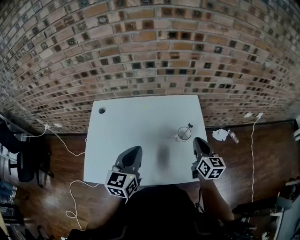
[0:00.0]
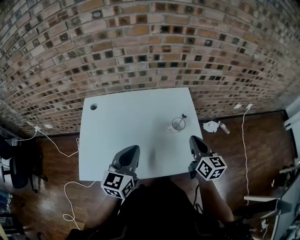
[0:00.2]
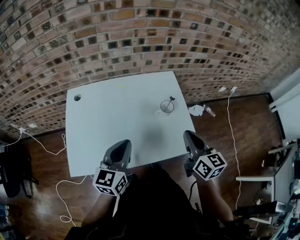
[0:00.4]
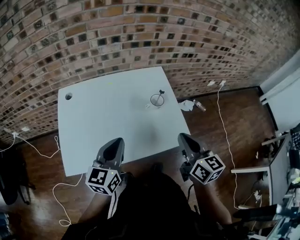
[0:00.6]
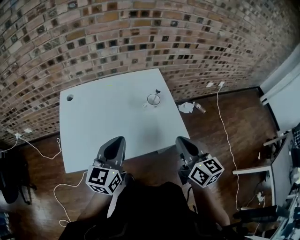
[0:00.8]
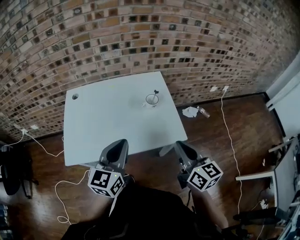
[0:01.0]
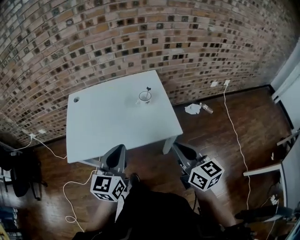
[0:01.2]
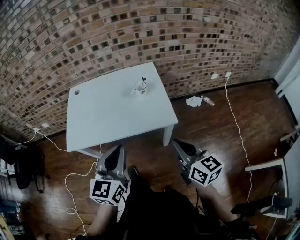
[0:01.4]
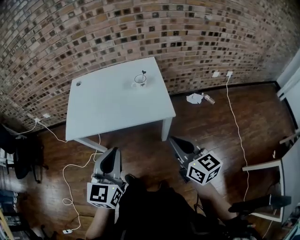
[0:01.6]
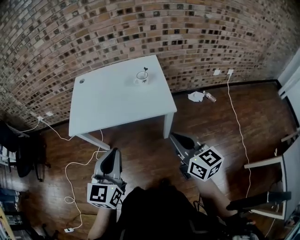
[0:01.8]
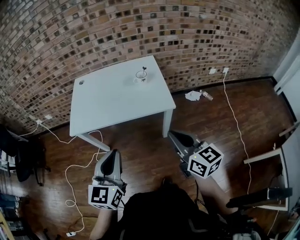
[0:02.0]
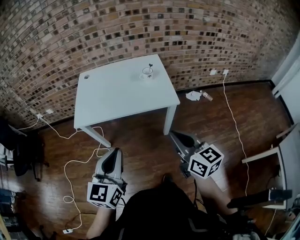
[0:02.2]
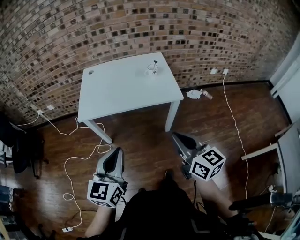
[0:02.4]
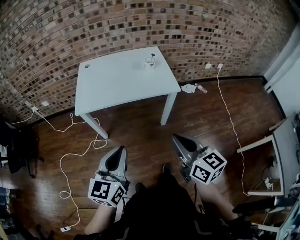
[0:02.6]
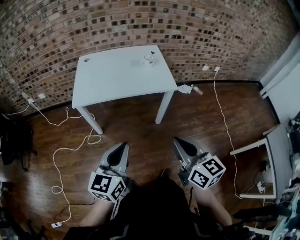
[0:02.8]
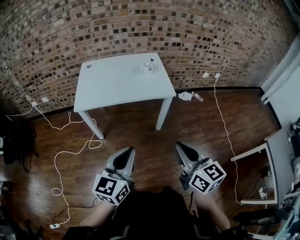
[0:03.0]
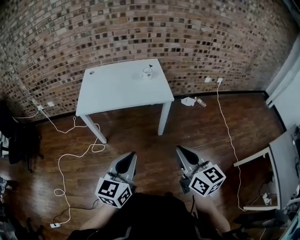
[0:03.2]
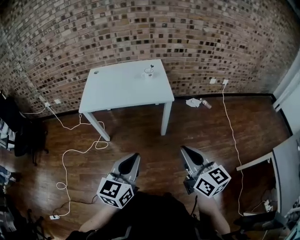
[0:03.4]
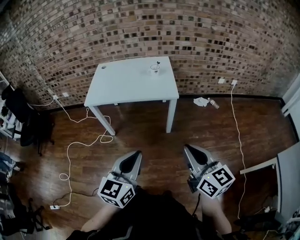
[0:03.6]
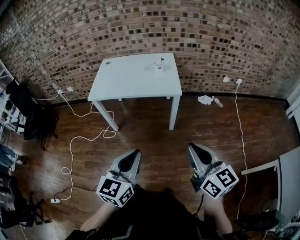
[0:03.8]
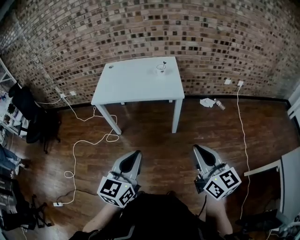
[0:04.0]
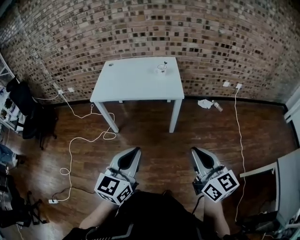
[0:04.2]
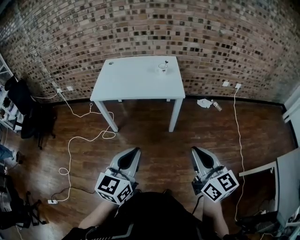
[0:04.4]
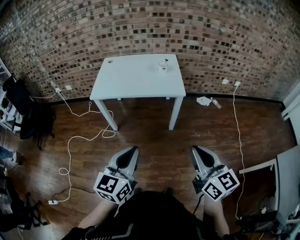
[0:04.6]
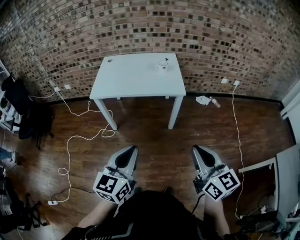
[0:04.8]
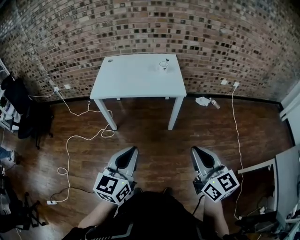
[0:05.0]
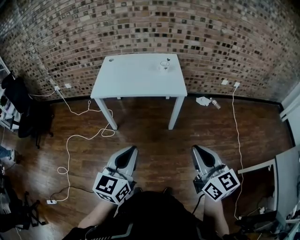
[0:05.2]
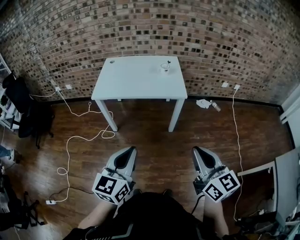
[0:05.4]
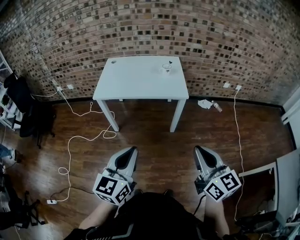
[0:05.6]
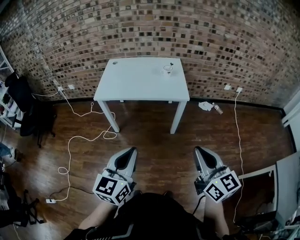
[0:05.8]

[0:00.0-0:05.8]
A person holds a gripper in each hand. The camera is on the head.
0:00.0 to 0:01.4: The right gripper is displaced backward by some 35 cm. The left gripper travels backward and to the right by roughly 30 cm.
0:01.4 to 0:02.8: Both grippers travel together backward and to the left, about 30 cm.
0:02.8 to 0:04.4: The grippers both shift to the right and backward by some 15 cm.
0:04.4 to 0:05.8: The grippers make only small movements.

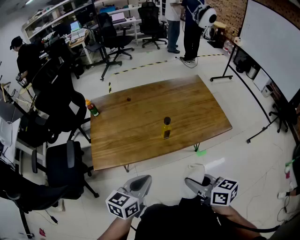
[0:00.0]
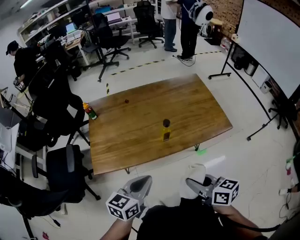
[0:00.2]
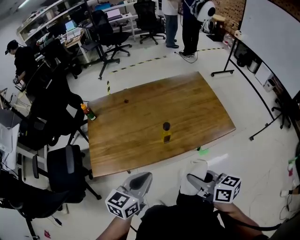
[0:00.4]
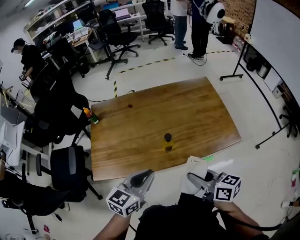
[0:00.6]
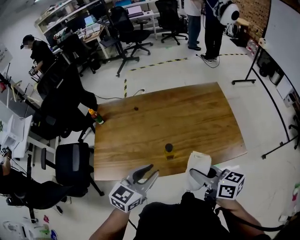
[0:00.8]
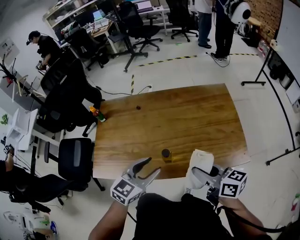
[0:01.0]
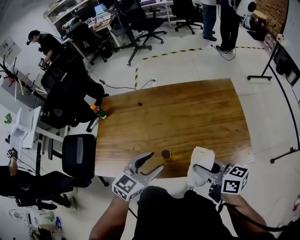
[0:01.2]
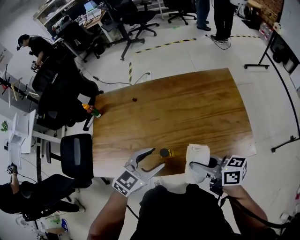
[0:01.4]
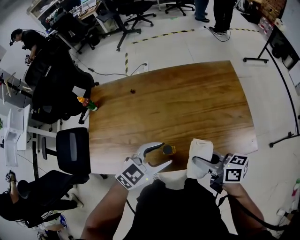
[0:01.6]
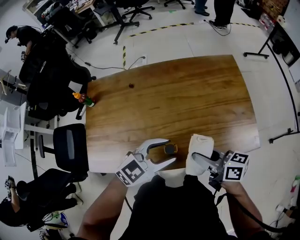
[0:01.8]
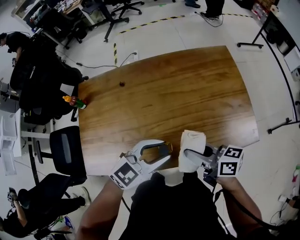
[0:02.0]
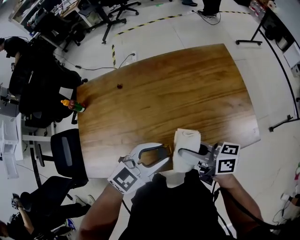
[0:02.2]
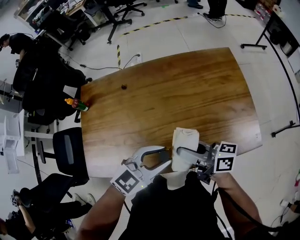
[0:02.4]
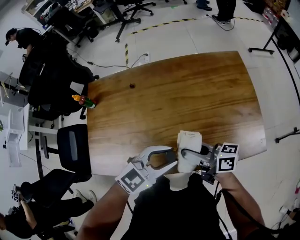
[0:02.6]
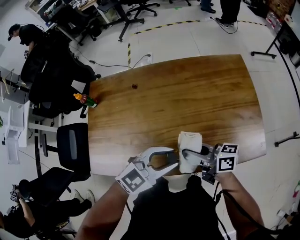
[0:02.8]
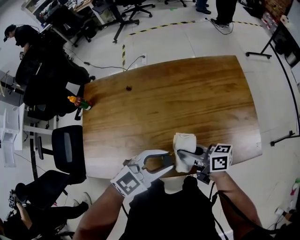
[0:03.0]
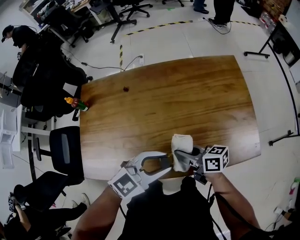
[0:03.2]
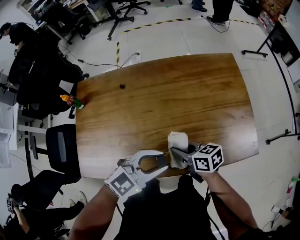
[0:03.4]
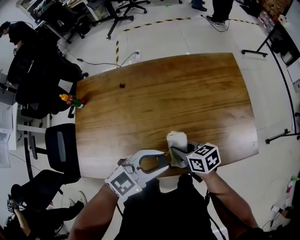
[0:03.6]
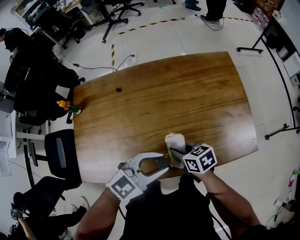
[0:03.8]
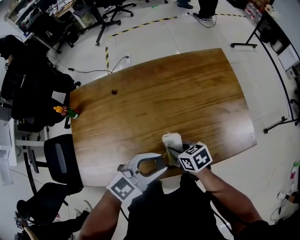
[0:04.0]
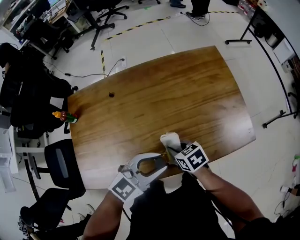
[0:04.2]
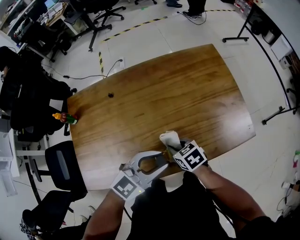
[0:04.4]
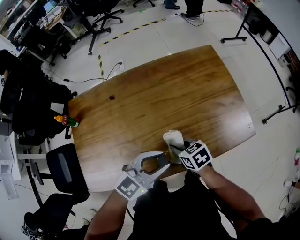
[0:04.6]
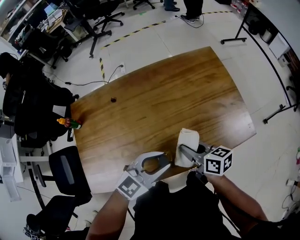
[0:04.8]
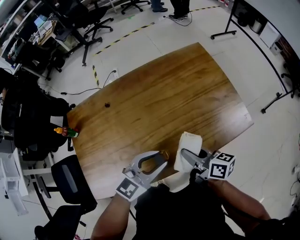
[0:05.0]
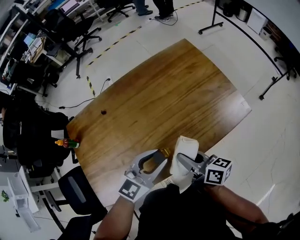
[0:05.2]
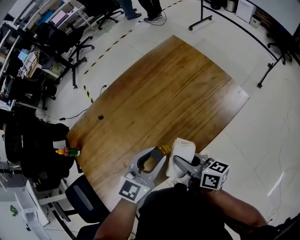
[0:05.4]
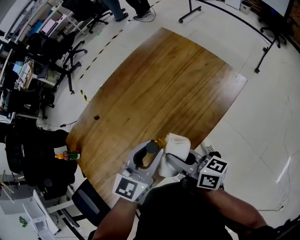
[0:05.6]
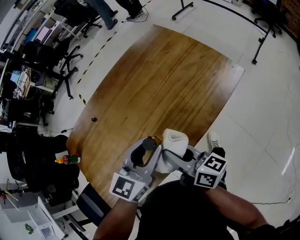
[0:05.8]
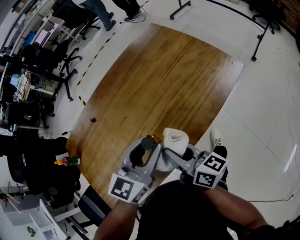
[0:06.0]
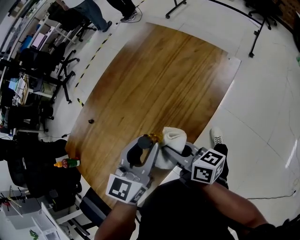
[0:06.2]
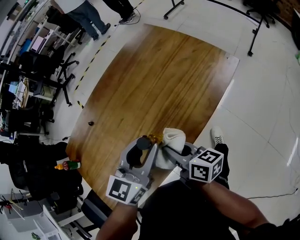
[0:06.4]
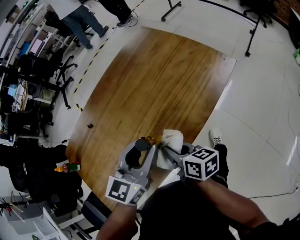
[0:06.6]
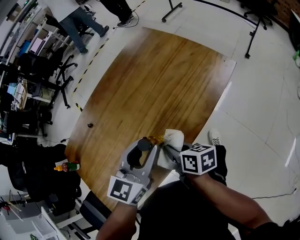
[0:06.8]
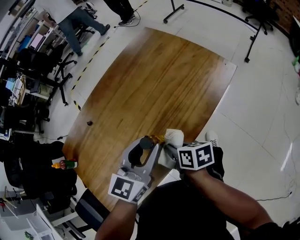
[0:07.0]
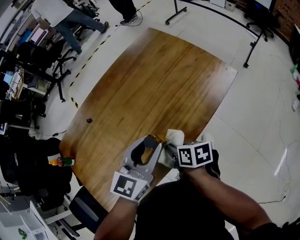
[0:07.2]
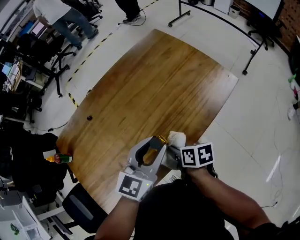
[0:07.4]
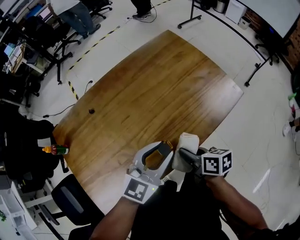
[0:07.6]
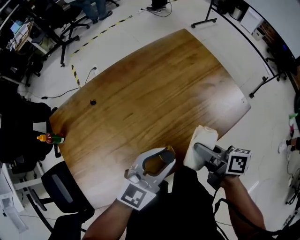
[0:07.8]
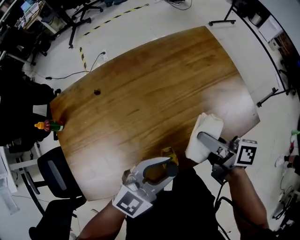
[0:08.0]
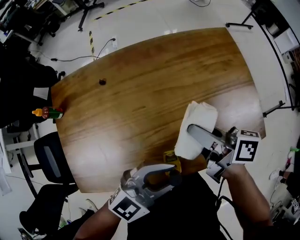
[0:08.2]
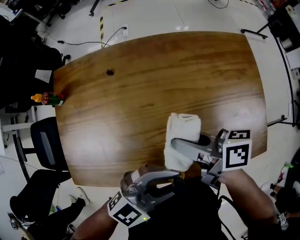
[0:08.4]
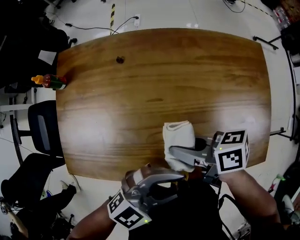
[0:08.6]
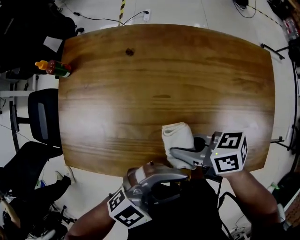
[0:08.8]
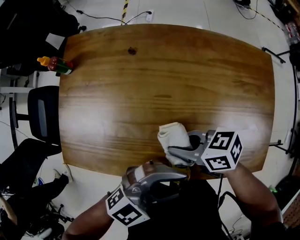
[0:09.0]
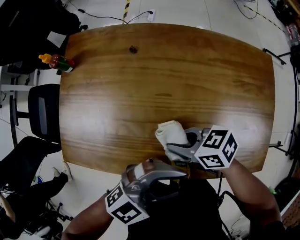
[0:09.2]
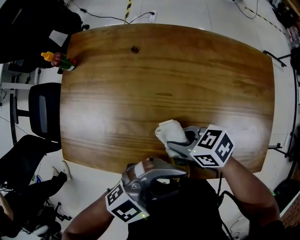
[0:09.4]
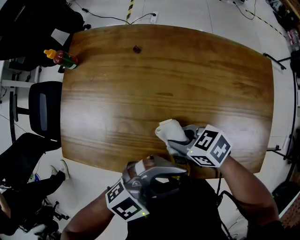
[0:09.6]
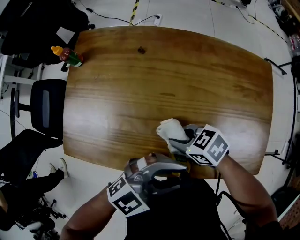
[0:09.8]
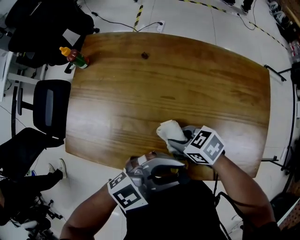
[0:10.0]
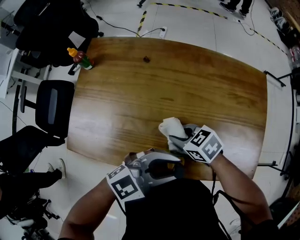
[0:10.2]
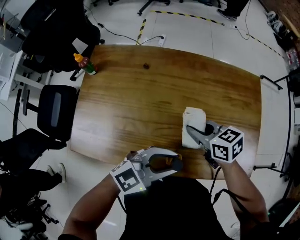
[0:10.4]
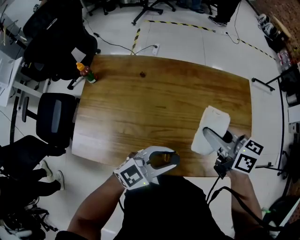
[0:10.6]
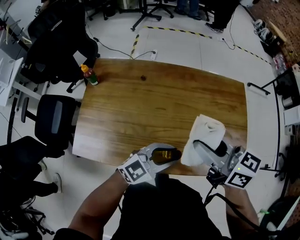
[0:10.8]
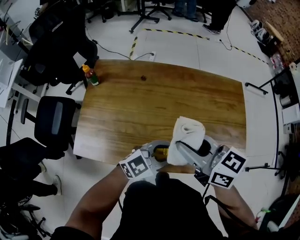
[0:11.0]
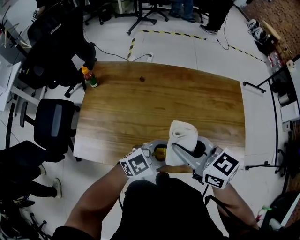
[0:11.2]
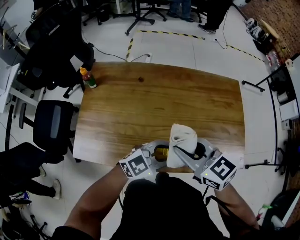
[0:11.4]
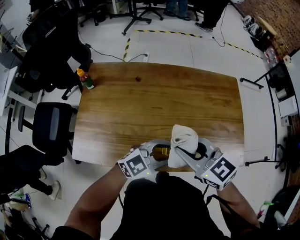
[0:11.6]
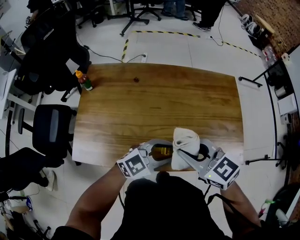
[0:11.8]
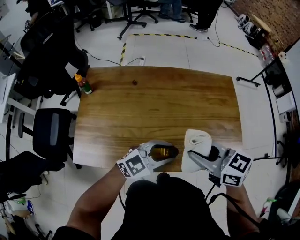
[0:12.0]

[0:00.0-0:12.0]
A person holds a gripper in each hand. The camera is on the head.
0:00.0 to 0:01.6: The right gripper travels forward by some 25 cm, and turns by about 20 degrees. The left gripper is displaced forward and to the right by about 25 cm, swivels approximately 30 degrees, and opens up.
0:01.6 to 0:03.0: The left gripper closes up, while the right gripper moves approximately 10 cm.
0:03.0 to 0:04.4: The right gripper shifts some 10 cm downward, and tilts its fingers about 50 degrees downward.
0:04.4 to 0:06.0: The right gripper travels upward and backward by some 10 cm, and angles its fingers upward, by approximately 50 degrees.
0:06.0 to 0:07.6: The right gripper heads to the right and downward, covering about 10 cm, and tilts its fingers about 40 degrees downward.
0:07.6 to 0:09.0: The right gripper goes upward and returns, about 10 cm each way, and turns by some 80 degrees.
0:09.0 to 0:10.4: The right gripper moves some 10 cm, and rotates approximately 30 degrees.
0:10.4 to 0:12.0: The right gripper shifts roughly 15 cm upward.

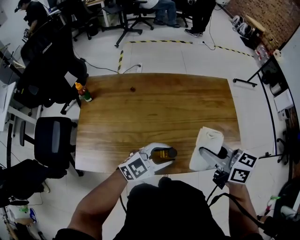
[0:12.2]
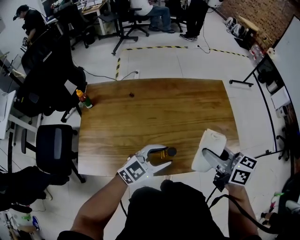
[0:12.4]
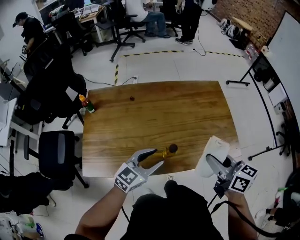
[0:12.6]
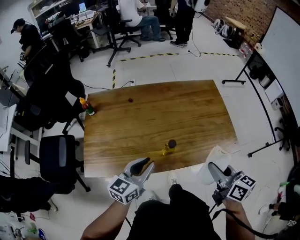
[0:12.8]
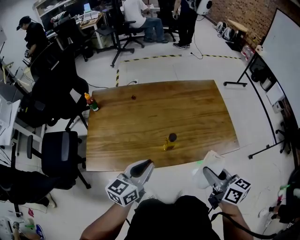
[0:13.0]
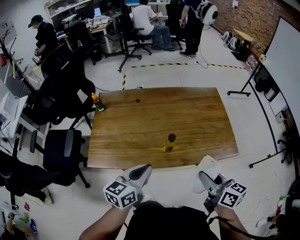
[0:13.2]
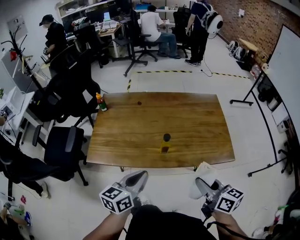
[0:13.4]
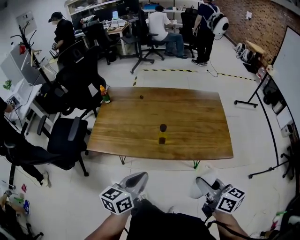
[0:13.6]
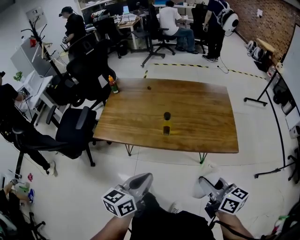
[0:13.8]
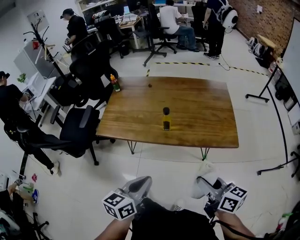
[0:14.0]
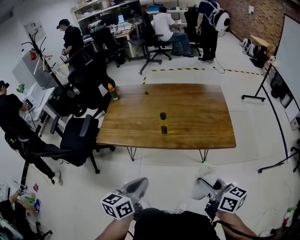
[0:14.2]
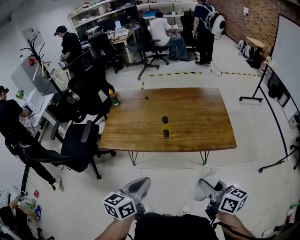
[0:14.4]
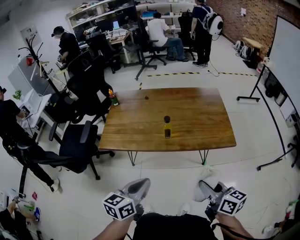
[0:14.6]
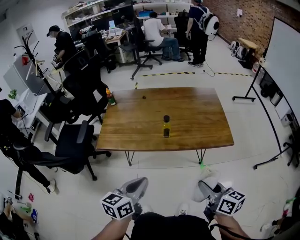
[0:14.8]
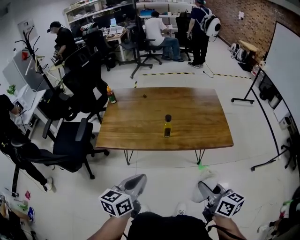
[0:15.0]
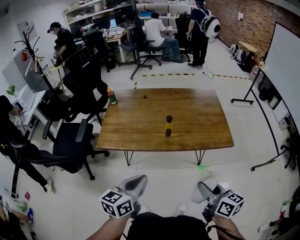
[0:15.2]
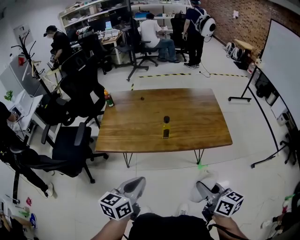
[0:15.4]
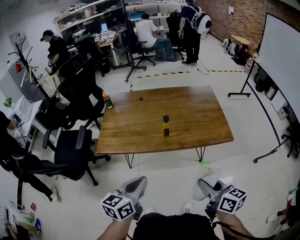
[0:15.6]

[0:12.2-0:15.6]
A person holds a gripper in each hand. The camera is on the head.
0:12.2 to 0:13.8: The two grippers go approximately 25 cm backward. The left gripper changes its angle by roughly 60 degrees, and closes up.
0:13.8 to 0:15.6: The right gripper heads backward, covering roughly 5 cm, while the left gripper is displaced to the left by some 10 cm.

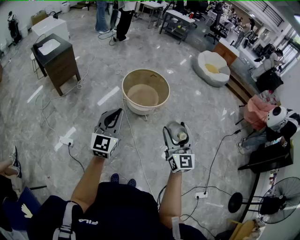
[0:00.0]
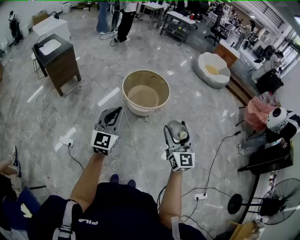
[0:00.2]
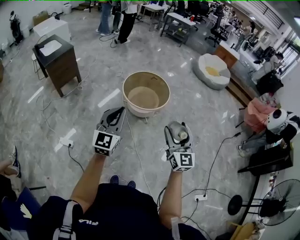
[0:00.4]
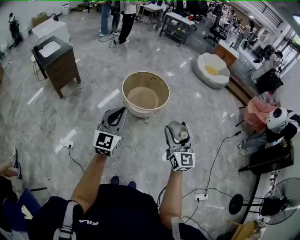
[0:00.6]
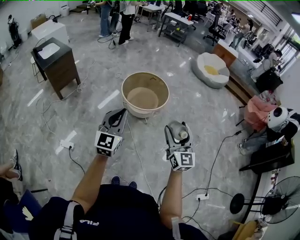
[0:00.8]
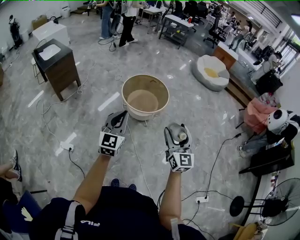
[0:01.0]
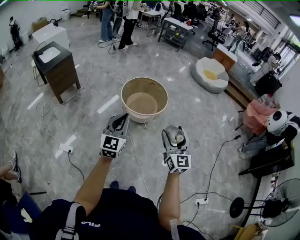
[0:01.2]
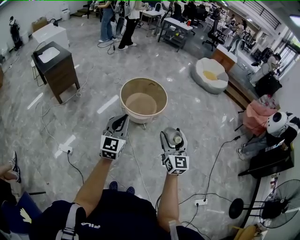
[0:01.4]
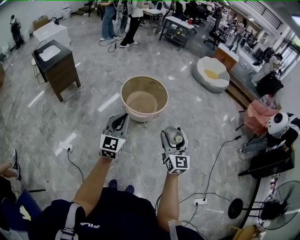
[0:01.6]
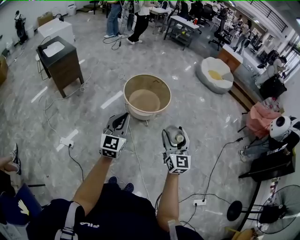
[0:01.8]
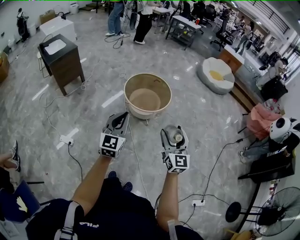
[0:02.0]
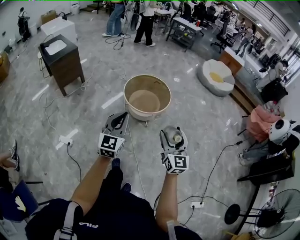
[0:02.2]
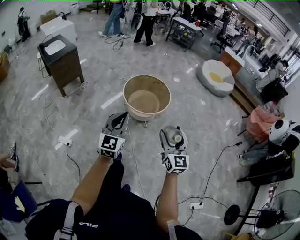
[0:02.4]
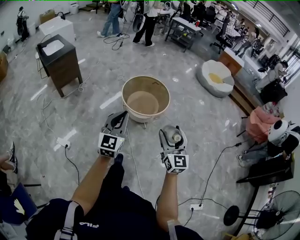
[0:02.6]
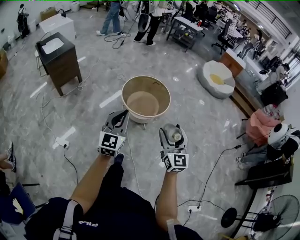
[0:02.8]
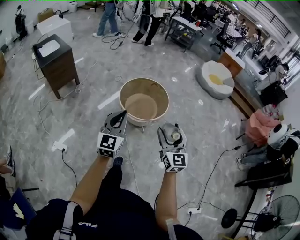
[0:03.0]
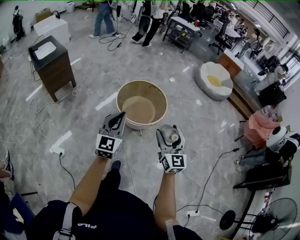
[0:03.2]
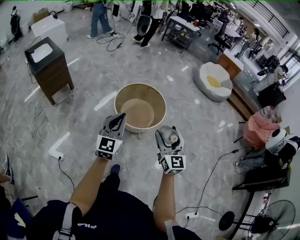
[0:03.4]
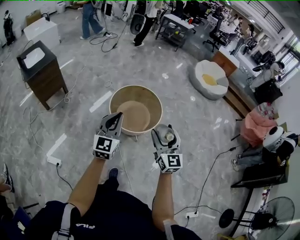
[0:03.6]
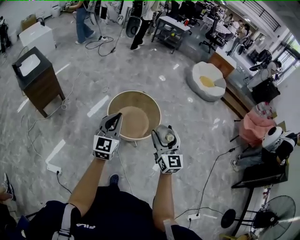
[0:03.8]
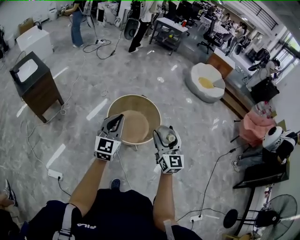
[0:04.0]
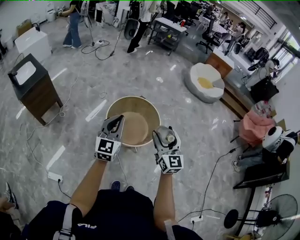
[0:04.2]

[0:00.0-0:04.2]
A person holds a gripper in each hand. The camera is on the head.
0:00.0 to 0:01.4: The left gripper moves some 5 cm.
0:01.4 to 0:02.8: The two grippers go about 5 cm forward.
0:02.8 to 0:04.2: The two grippers go approximately 30 cm forward.
